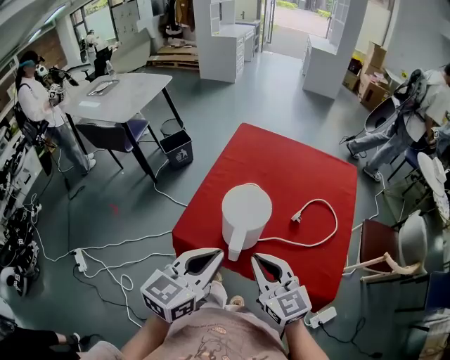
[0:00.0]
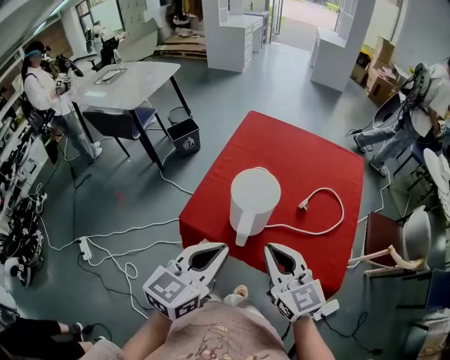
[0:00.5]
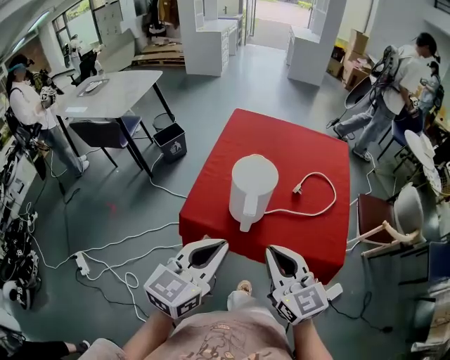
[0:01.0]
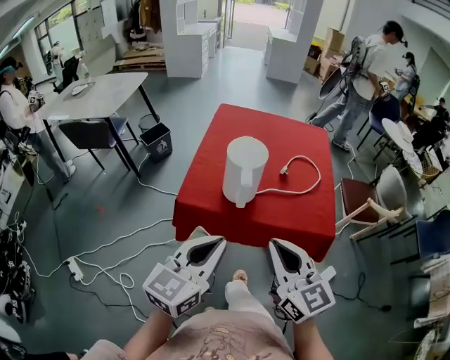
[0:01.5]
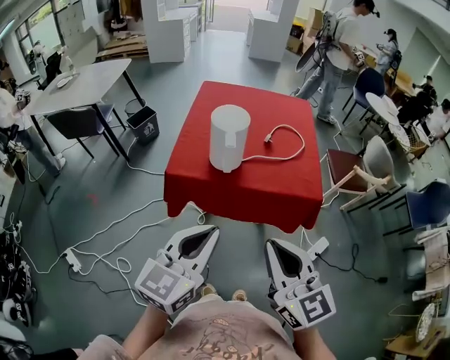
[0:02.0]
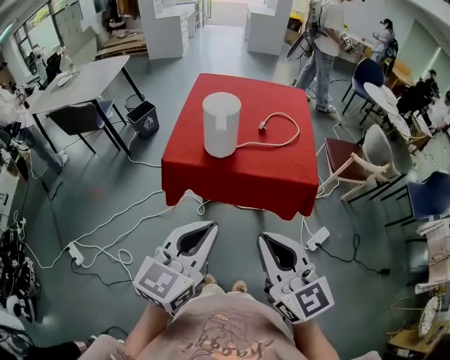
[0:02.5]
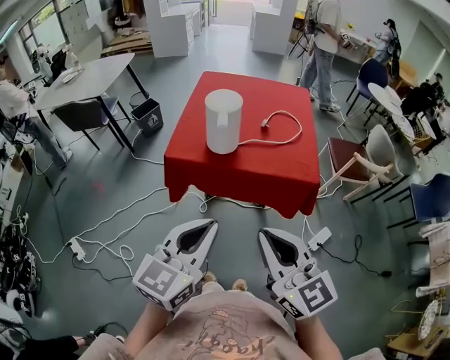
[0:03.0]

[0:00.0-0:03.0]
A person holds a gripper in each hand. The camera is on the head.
0:00.0 to 0:01.5: The left gripper goes approximately 15 cm backward, while the right gripper shifts about 20 cm backward and upward.
0:01.5 to 0:03.0: Both grippers move backward, some 15 cm.

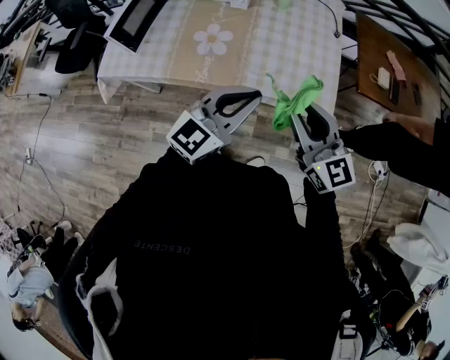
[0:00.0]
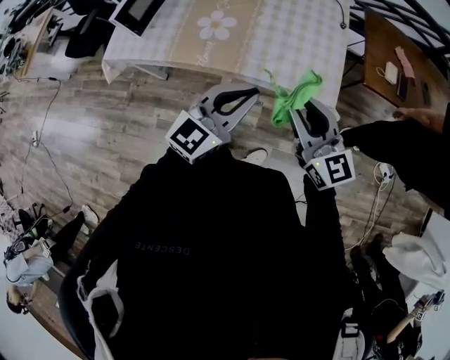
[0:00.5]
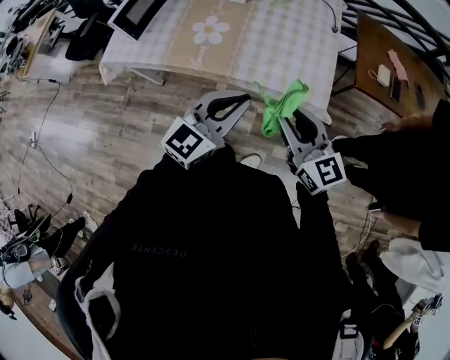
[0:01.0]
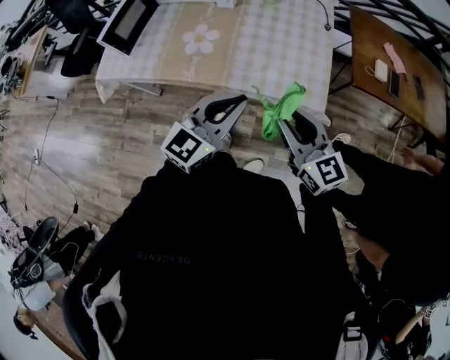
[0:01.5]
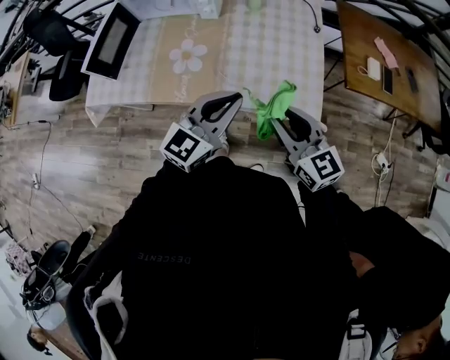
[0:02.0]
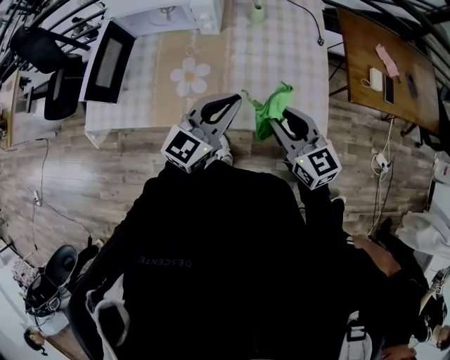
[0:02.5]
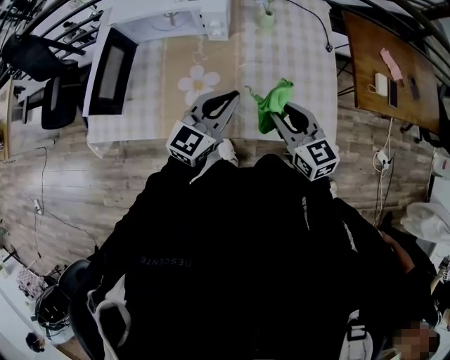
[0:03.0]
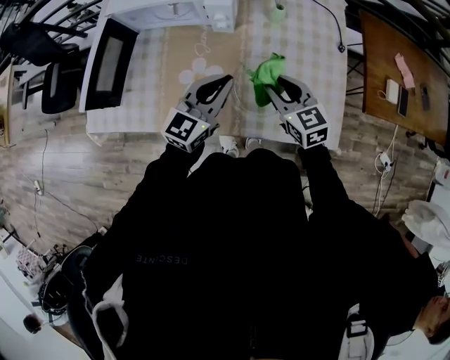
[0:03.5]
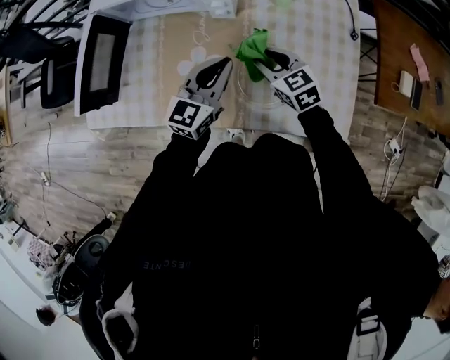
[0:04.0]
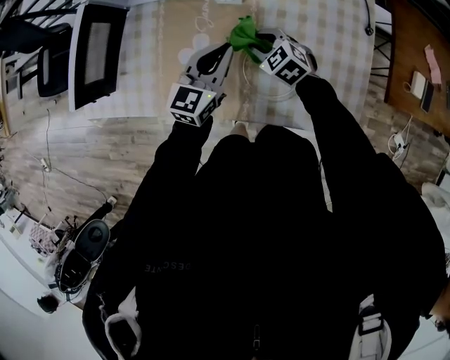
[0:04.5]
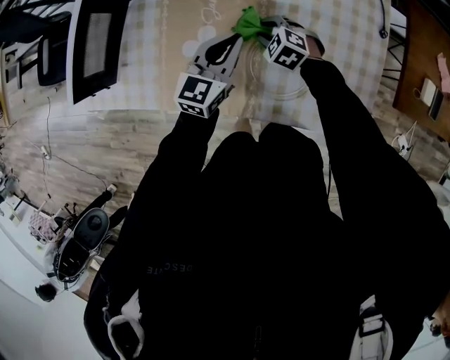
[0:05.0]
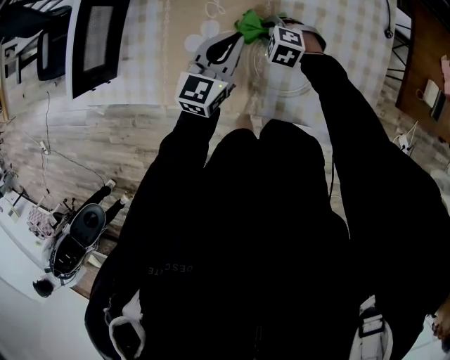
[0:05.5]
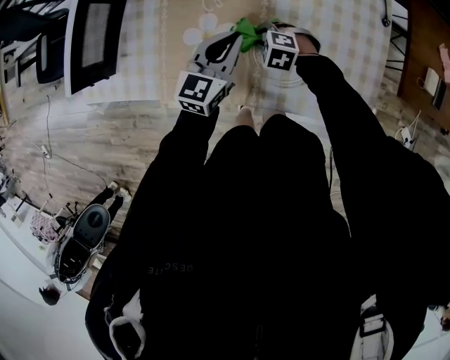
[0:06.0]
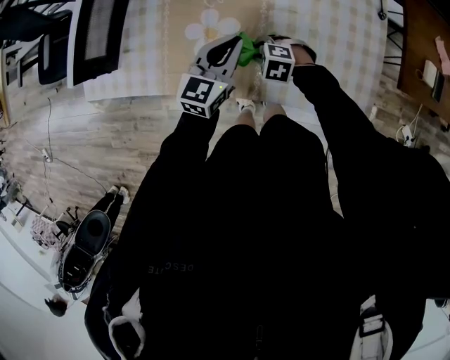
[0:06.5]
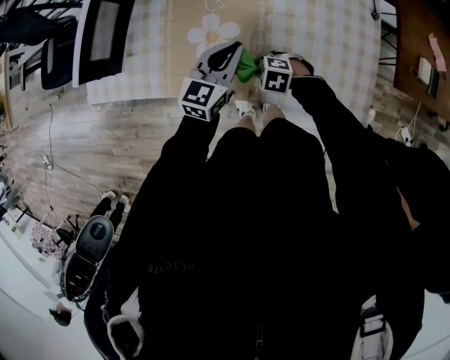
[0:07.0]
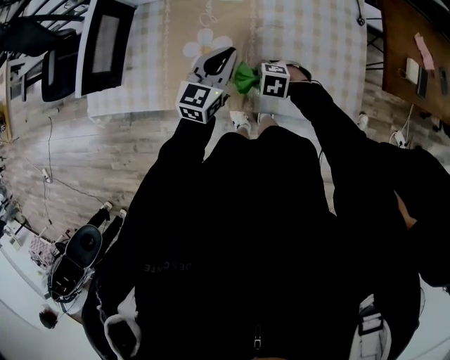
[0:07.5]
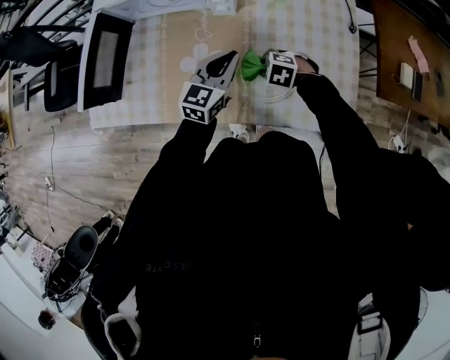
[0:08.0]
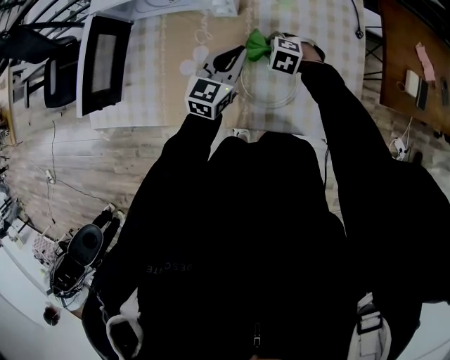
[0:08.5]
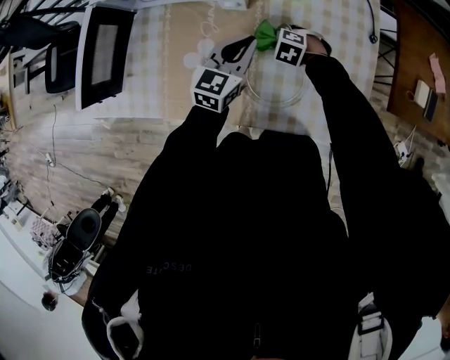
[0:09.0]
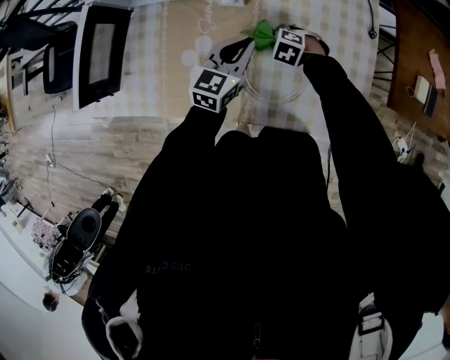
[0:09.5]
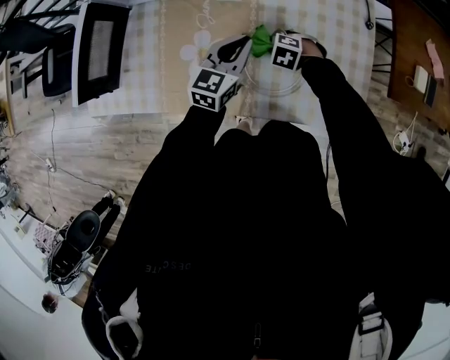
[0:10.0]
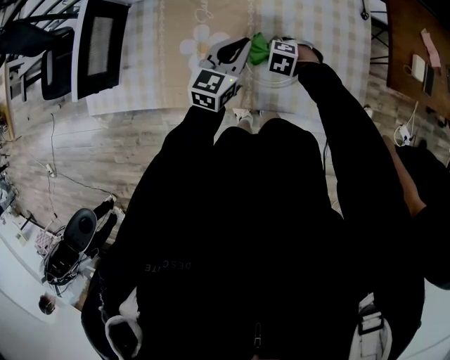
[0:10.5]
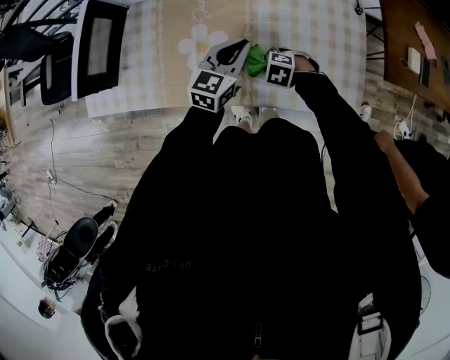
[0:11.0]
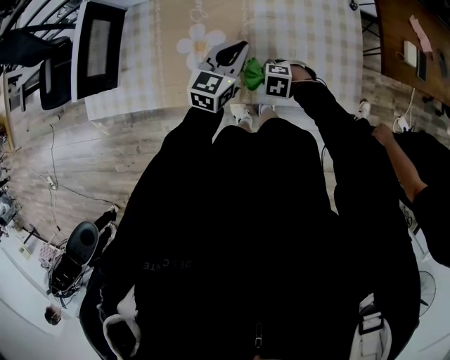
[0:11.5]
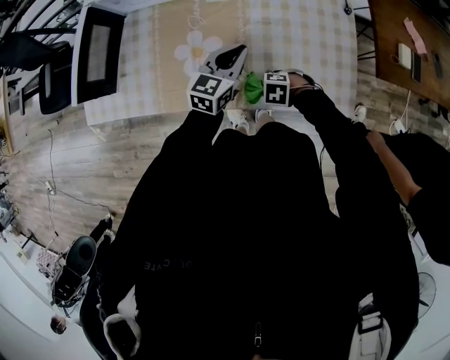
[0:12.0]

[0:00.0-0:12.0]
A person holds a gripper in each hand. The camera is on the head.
0:00.0 to 0:02.0: The left gripper shifts approximately 5 cm forward. The right gripper goes some 5 cm downward.
0:02.0 to 0:04.0: The right gripper travels forward, downward and to the left by about 40 cm, and changes its angle by about 30 degrees; the left gripper travels forward, to the left and downward by roughly 30 cm.
0:04.0 to 0:06.0: The right gripper shifts about 15 cm downward, and tilts its fingers roughly 30 degrees downward. The left gripper moves downward, some 5 cm.
0:06.0 to 0:08.0: The right gripper moves some 10 cm.
0:10.0 to 0:12.0: The left gripper ends up some 5 cm from where it was. The right gripper moves some 20 cm.

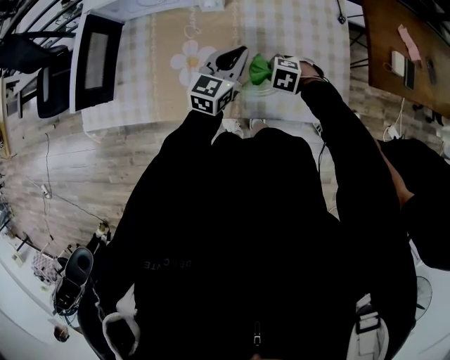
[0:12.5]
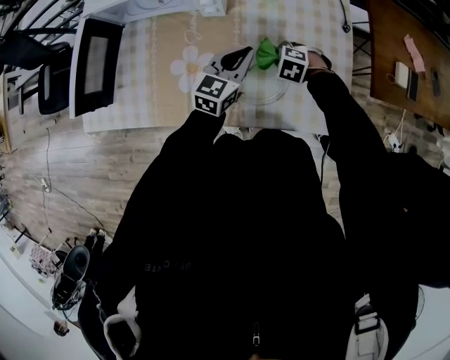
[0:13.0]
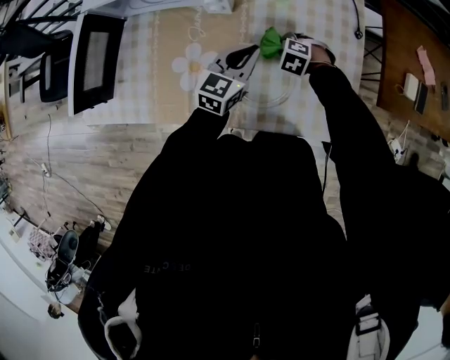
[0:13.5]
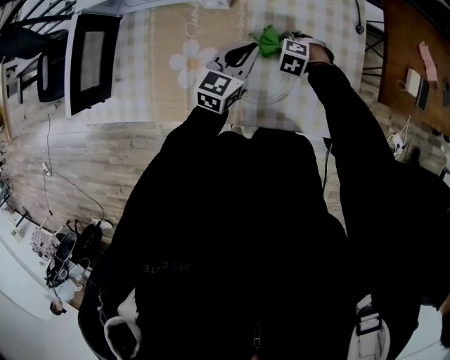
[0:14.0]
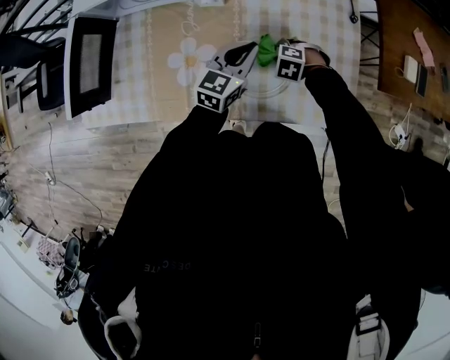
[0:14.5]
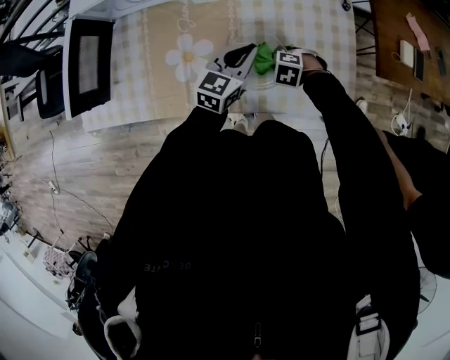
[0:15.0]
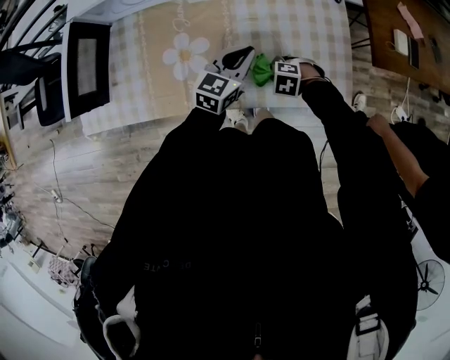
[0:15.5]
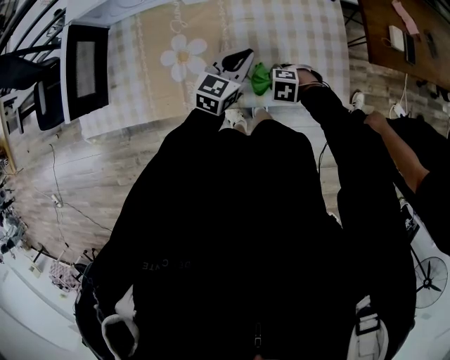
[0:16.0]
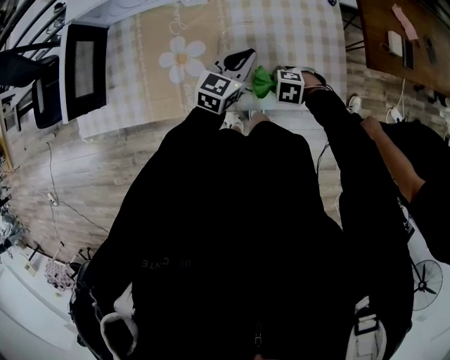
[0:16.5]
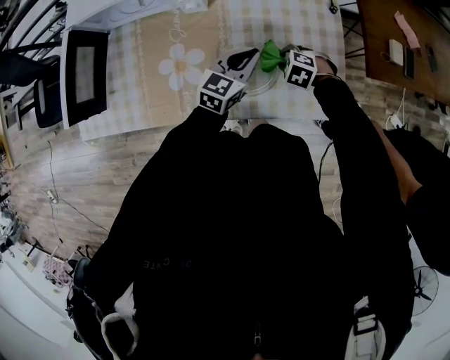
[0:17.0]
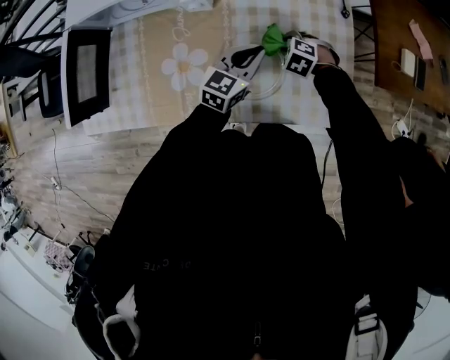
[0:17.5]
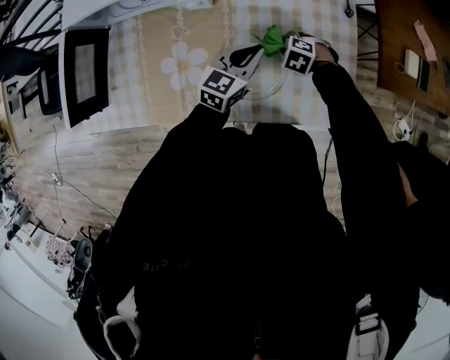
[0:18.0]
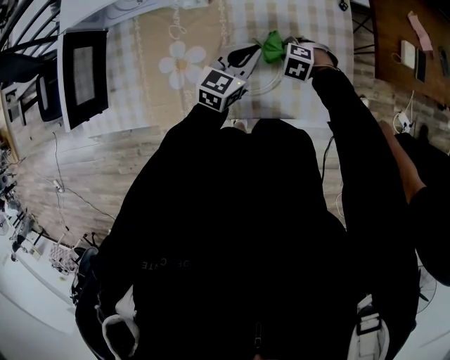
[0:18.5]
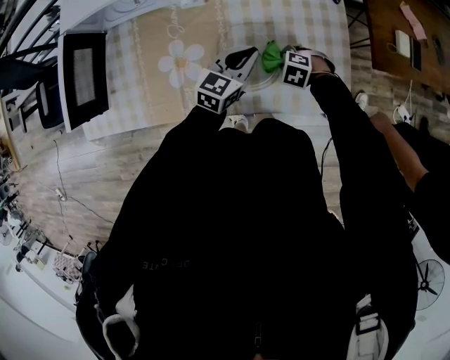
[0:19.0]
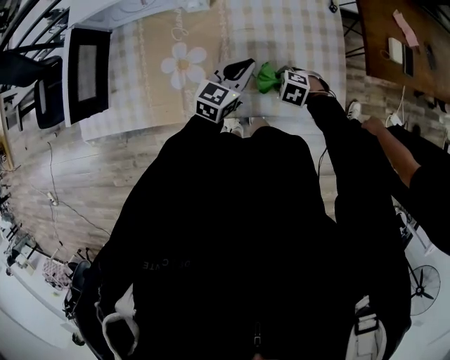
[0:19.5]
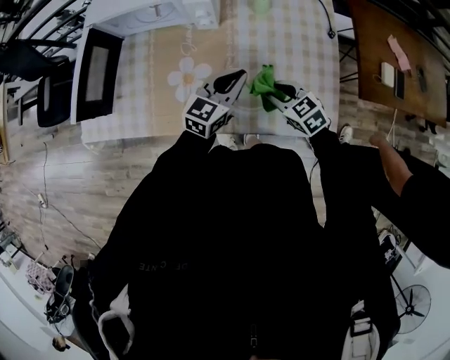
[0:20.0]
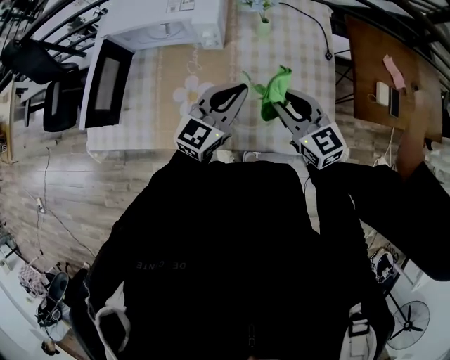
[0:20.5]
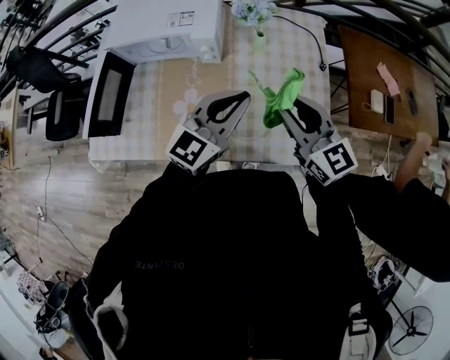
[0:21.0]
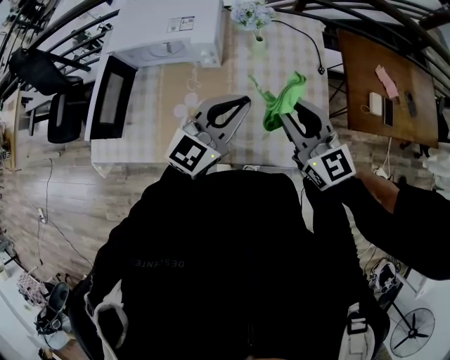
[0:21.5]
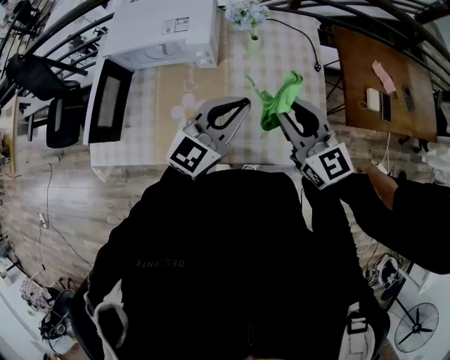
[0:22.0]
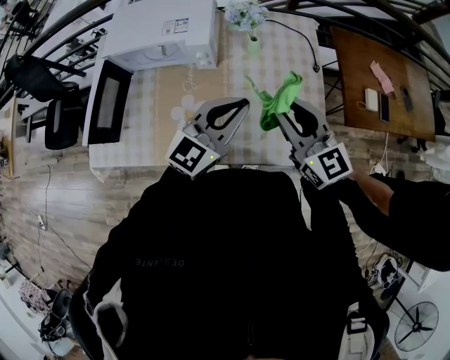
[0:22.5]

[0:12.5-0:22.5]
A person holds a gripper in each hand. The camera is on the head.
0:14.5 to 0:16.5: The left gripper shifts by about 5 cm, while the right gripper changes place by roughly 15 cm.
0:16.5 to 0:18.5: The left gripper shifts by some 5 cm; the right gripper shifts by approximately 15 cm.
0:18.5 to 0:20.5: The left gripper goes about 15 cm upward. Meanwhile the right gripper heads upward, covering some 30 cm, and points its fingers about 60 degrees further upward.
0:20.5 to 0:22.5: The grippers both shift upward by about 10 cm.

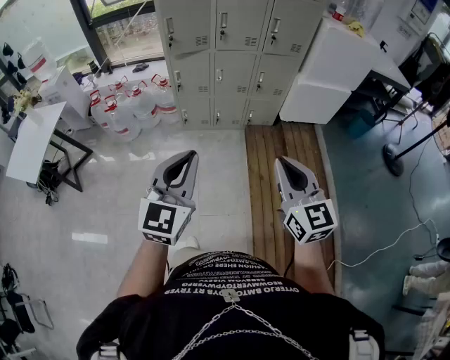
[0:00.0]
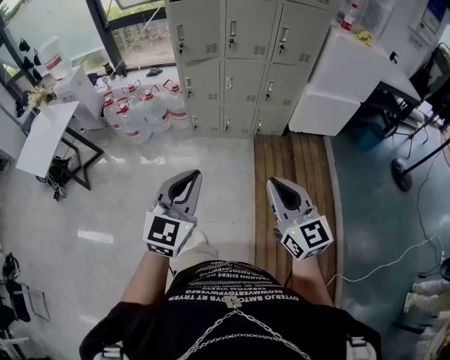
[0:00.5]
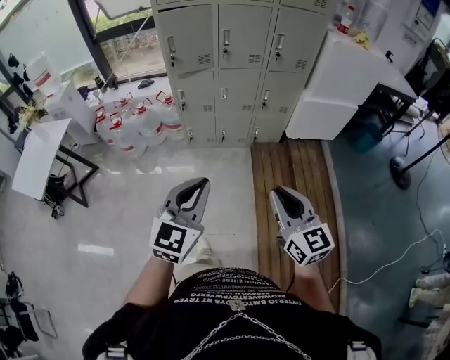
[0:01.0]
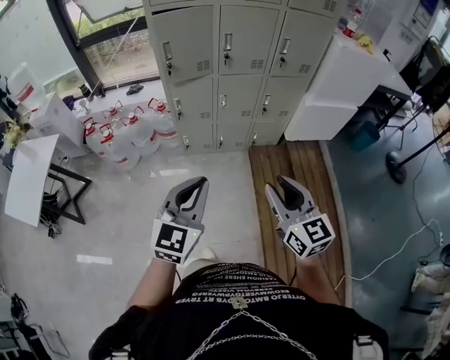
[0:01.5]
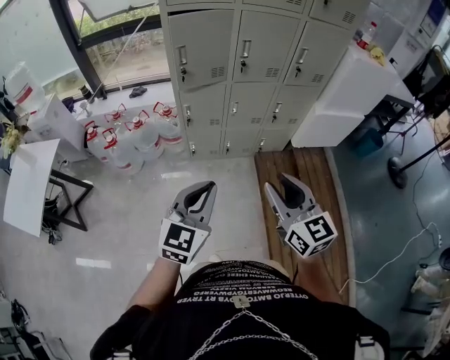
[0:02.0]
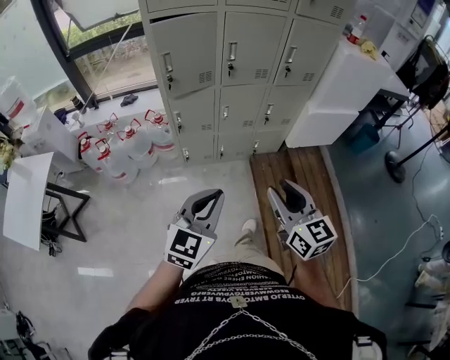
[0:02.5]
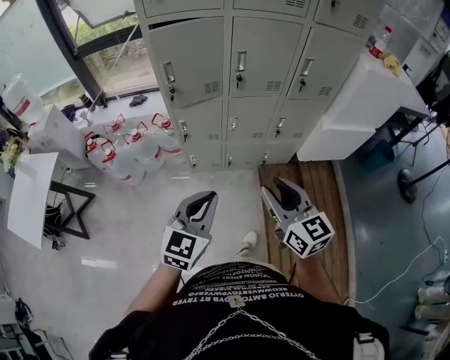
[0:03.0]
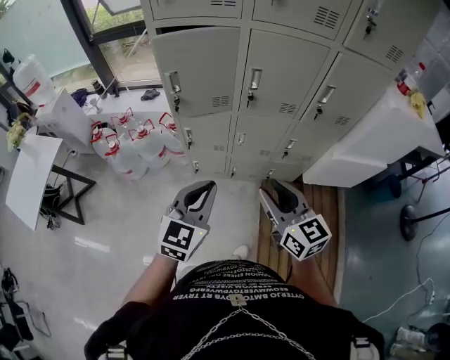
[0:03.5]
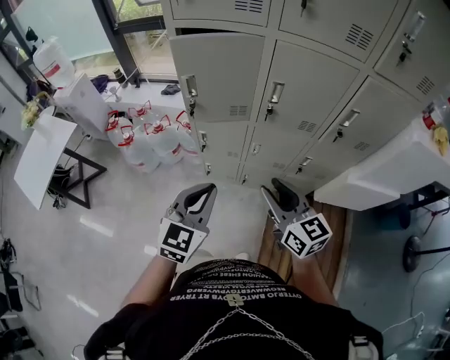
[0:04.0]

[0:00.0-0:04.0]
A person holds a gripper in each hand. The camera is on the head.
0:00.0 to 0:02.0: The grippers both shift forward and to the left by about 25 cm. The right gripper opens up.
0:02.0 to 0:04.0: The grippers both shift forward by about 30 cm. The right gripper turns by approximately 20 degrees.
